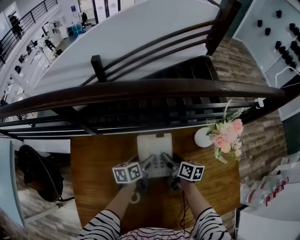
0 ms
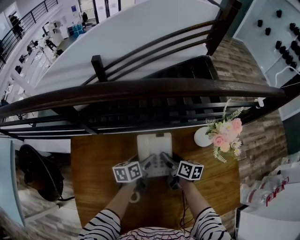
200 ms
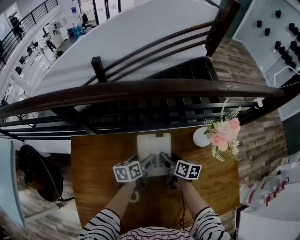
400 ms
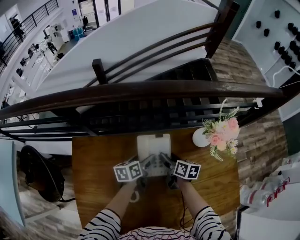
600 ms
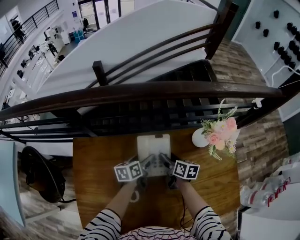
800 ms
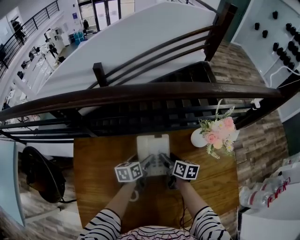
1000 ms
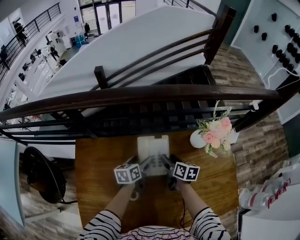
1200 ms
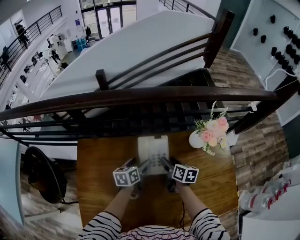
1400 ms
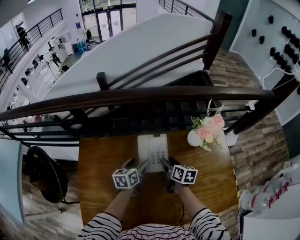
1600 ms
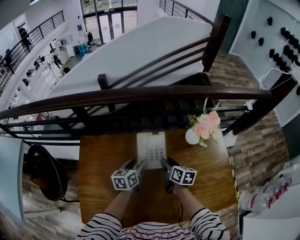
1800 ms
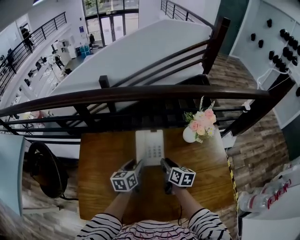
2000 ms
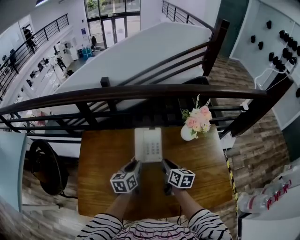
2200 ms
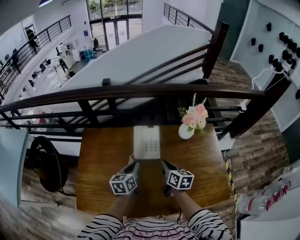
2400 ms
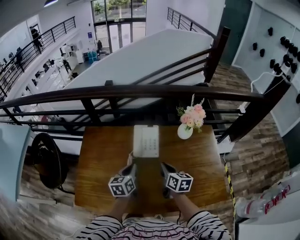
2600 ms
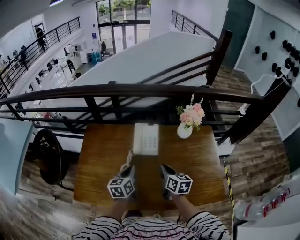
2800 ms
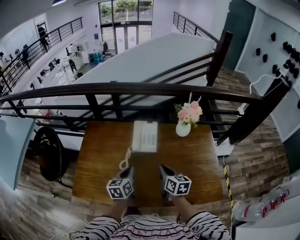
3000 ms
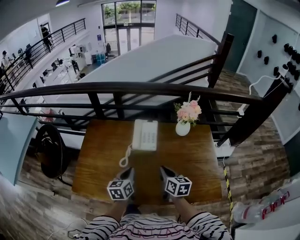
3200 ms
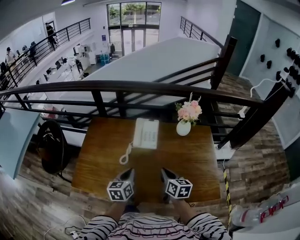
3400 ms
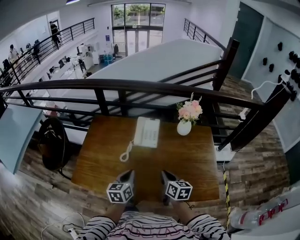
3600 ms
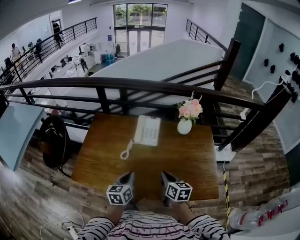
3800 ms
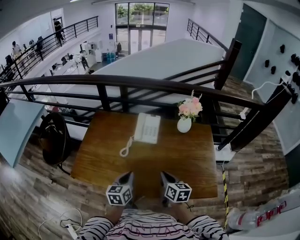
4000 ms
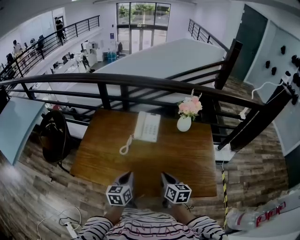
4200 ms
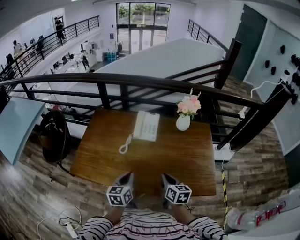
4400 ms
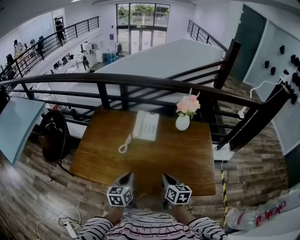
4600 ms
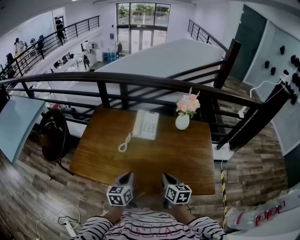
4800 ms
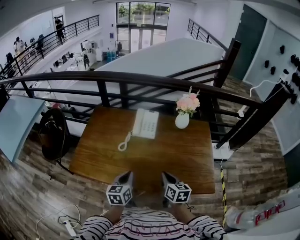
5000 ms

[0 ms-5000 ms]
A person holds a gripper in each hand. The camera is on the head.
0 ms to 1600 ms: Both grippers travel together backward and upward, about 10 cm.
1600 ms to 3400 ms: The grippers both shift backward by approximately 30 cm. The left gripper closes up, while the right gripper closes its fingers.
3400 ms to 5000 ms: The grippers both shift backward by approximately 10 cm.

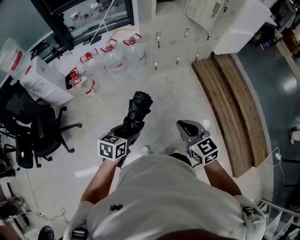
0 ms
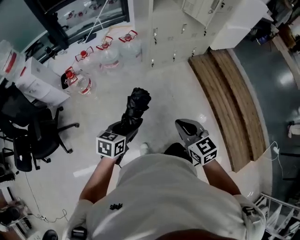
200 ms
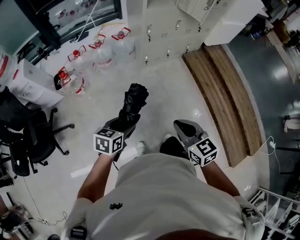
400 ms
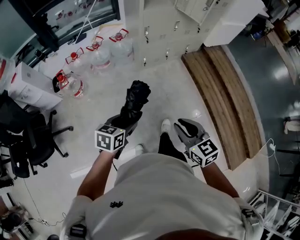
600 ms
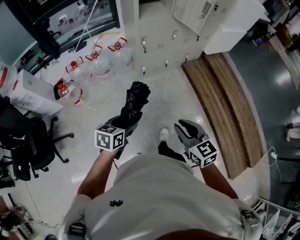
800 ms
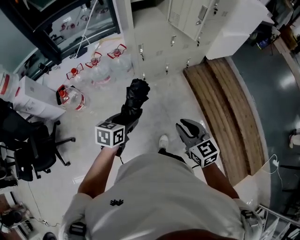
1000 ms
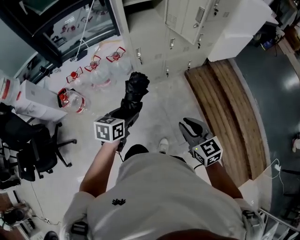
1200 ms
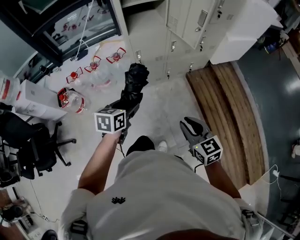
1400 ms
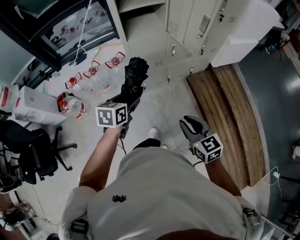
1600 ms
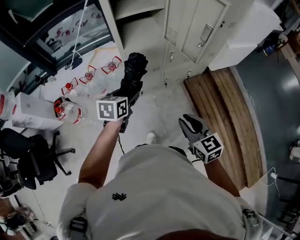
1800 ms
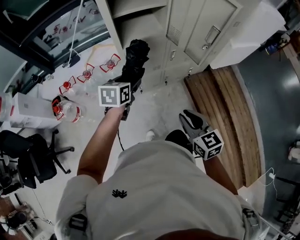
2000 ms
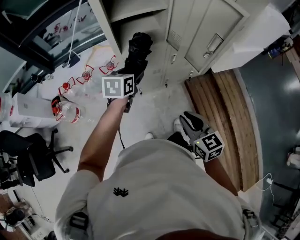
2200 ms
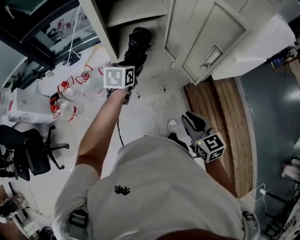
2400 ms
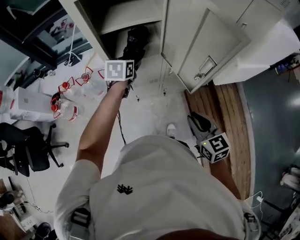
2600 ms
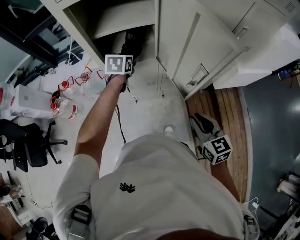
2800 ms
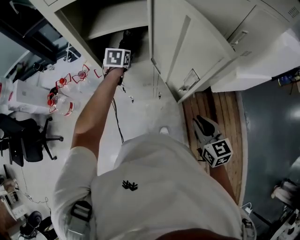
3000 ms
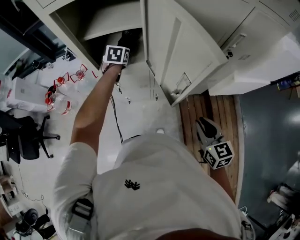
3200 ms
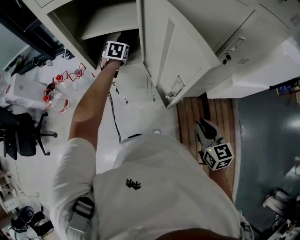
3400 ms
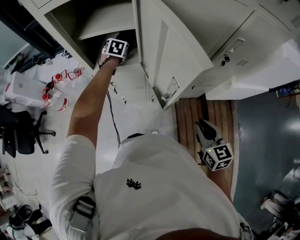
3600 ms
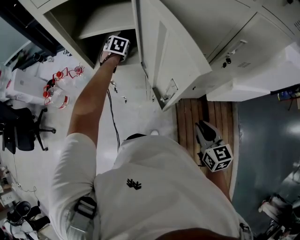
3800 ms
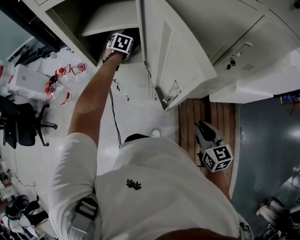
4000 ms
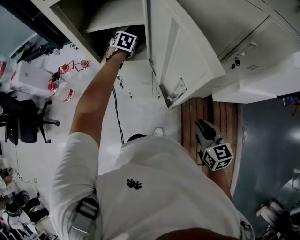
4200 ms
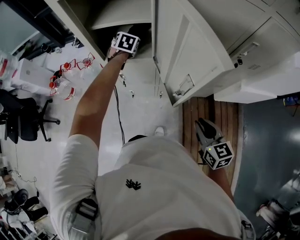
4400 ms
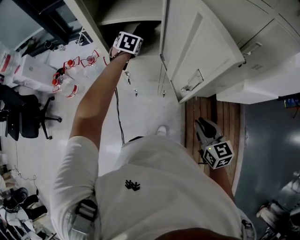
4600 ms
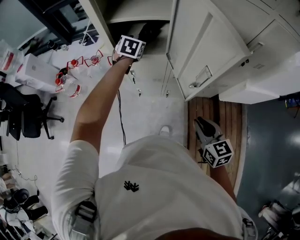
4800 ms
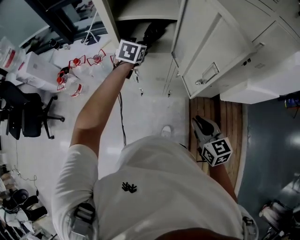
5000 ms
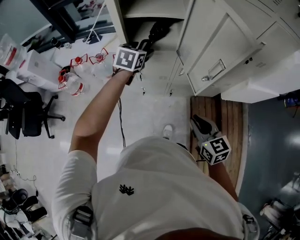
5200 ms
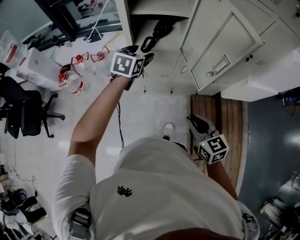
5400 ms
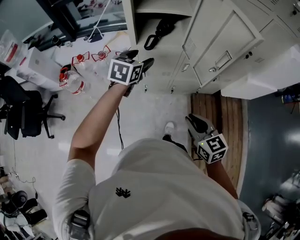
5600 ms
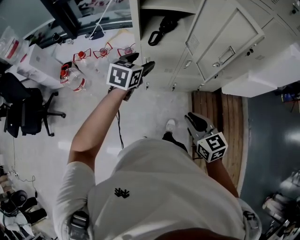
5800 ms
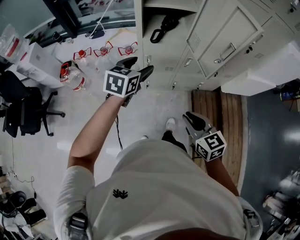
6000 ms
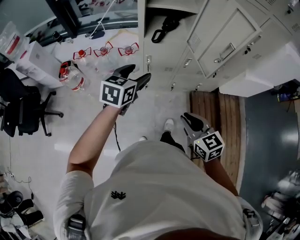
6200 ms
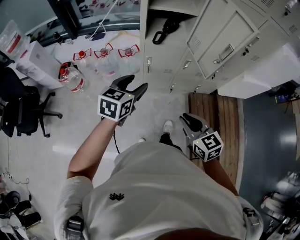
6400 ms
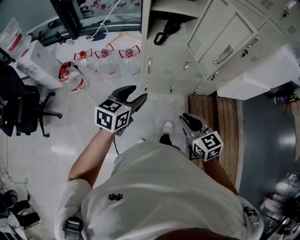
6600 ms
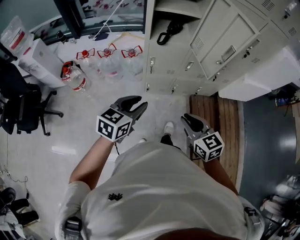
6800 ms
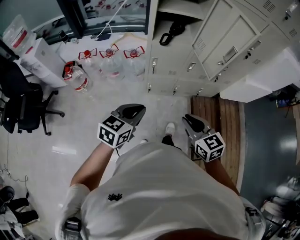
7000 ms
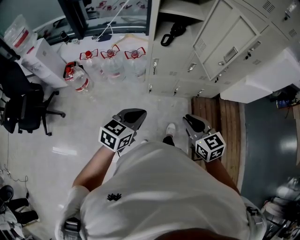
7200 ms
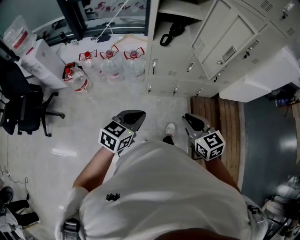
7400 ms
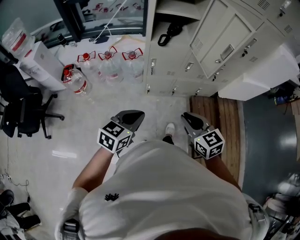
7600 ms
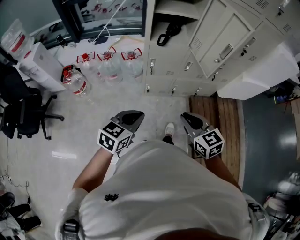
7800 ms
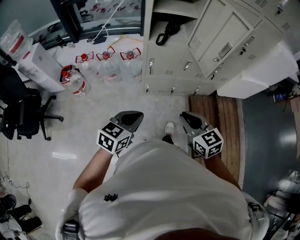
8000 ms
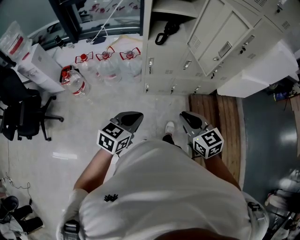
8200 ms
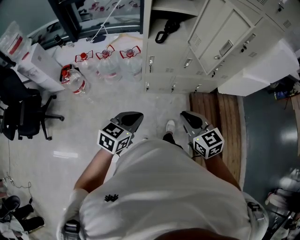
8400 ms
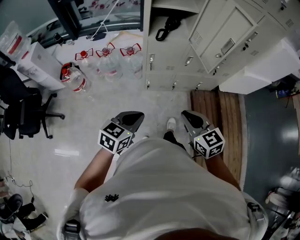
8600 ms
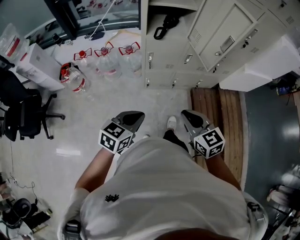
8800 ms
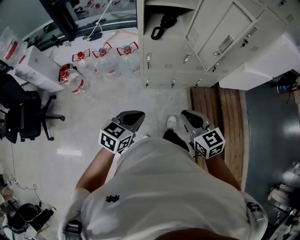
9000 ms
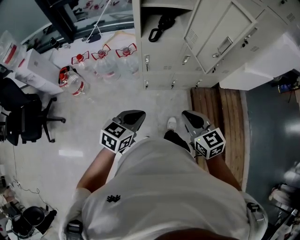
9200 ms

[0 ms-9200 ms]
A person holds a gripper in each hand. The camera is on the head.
0 ms to 1600 ms: The right gripper shifts roughly 35 cm forward and to the right, while the left gripper goes about 40 cm forward.
1600 ms to 3000 ms: The right gripper goes roughly 35 cm forward and to the right. The left gripper goes roughly 40 cm forward, and swivels about 20 degrees.
3000 ms to 4600 ms: The right gripper goes to the right and returns, about 10 cm each way.
4600 ms to 6200 ms: The right gripper moves to the left and backward, some 25 cm. The left gripper shifts roughly 35 cm backward and to the left, and swivels roughly 30 degrees.
6200 ms to 7600 ms: The right gripper shifts by approximately 5 cm, while the left gripper goes about 20 cm backward, and closes.
7600 ms to 9200 ms: The left gripper changes place by some 5 cm.

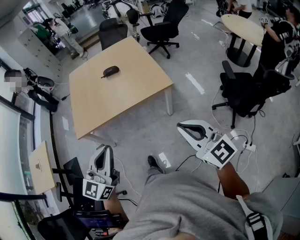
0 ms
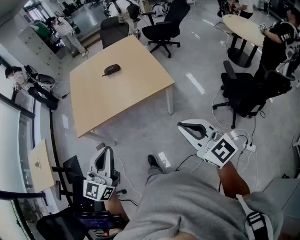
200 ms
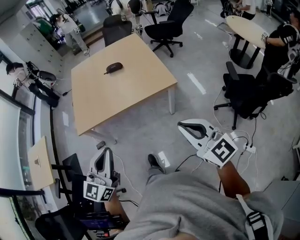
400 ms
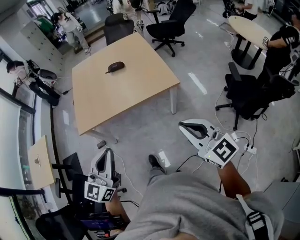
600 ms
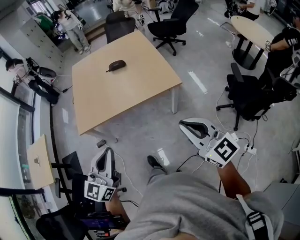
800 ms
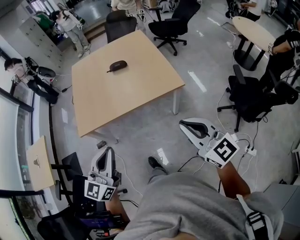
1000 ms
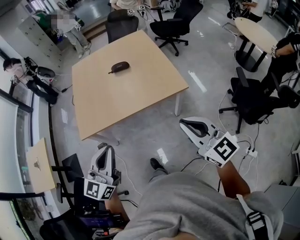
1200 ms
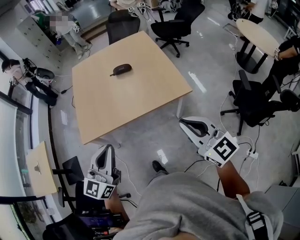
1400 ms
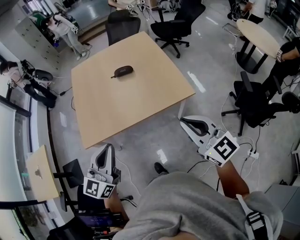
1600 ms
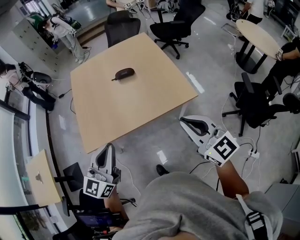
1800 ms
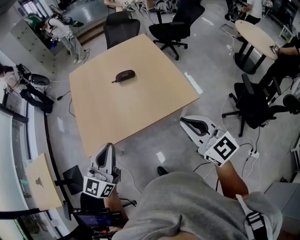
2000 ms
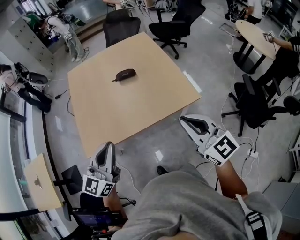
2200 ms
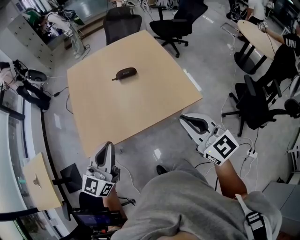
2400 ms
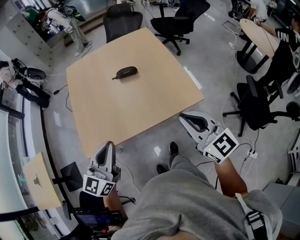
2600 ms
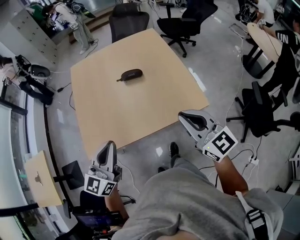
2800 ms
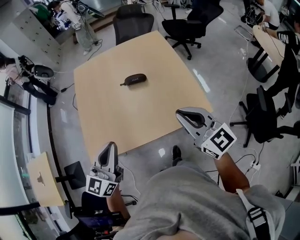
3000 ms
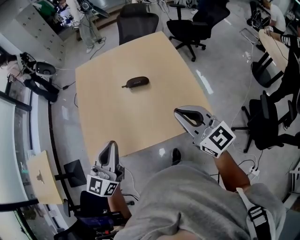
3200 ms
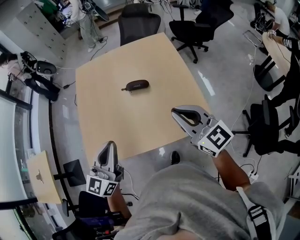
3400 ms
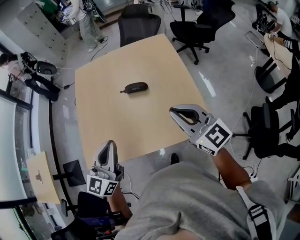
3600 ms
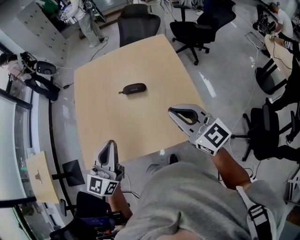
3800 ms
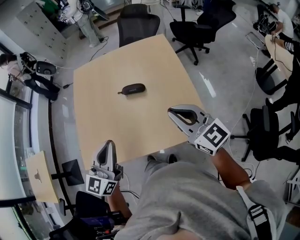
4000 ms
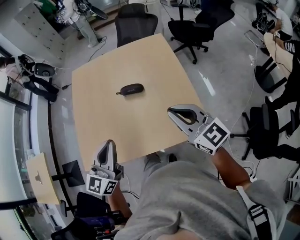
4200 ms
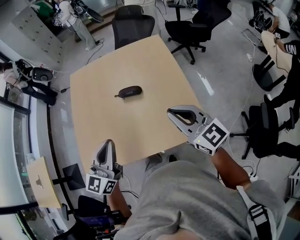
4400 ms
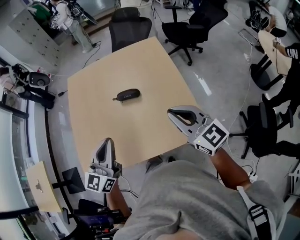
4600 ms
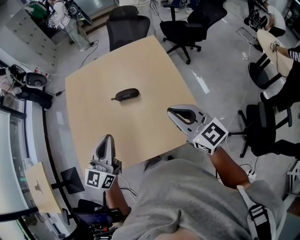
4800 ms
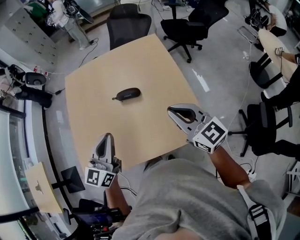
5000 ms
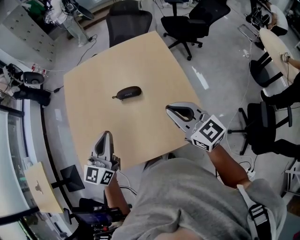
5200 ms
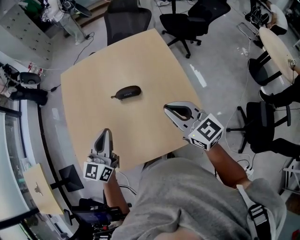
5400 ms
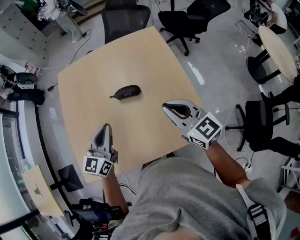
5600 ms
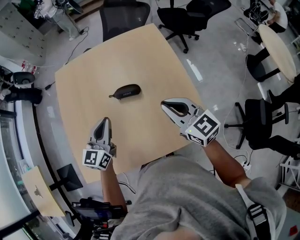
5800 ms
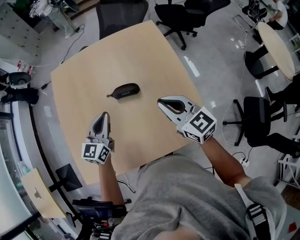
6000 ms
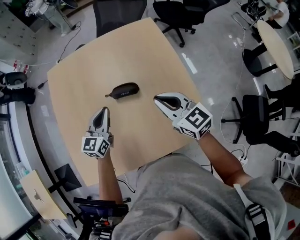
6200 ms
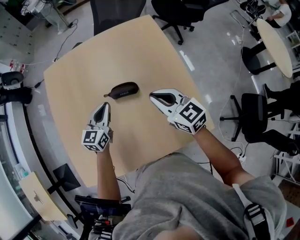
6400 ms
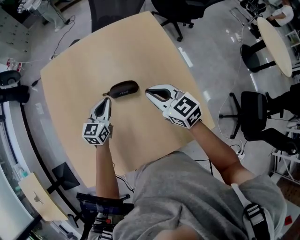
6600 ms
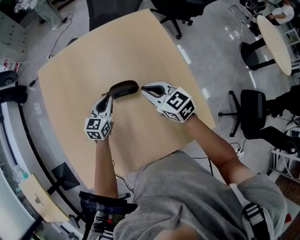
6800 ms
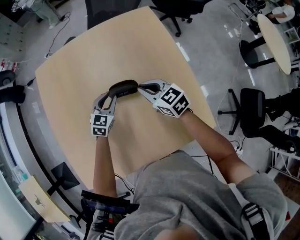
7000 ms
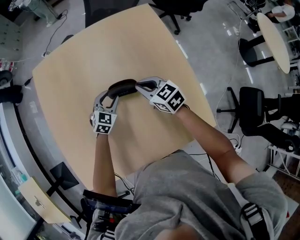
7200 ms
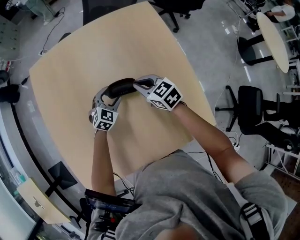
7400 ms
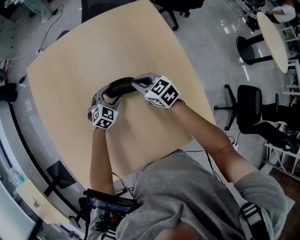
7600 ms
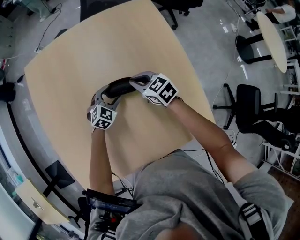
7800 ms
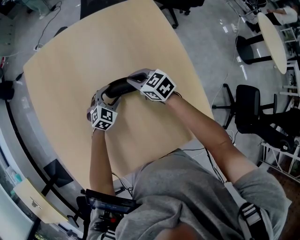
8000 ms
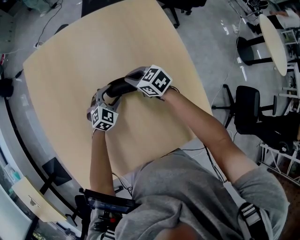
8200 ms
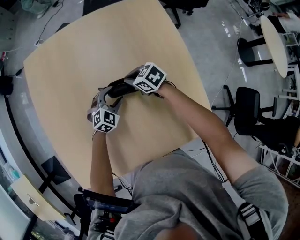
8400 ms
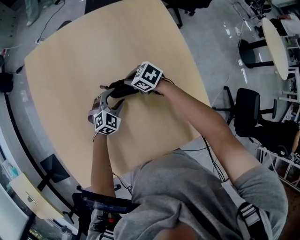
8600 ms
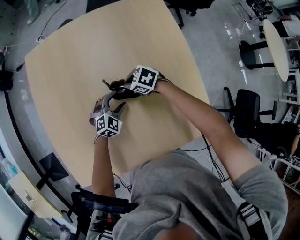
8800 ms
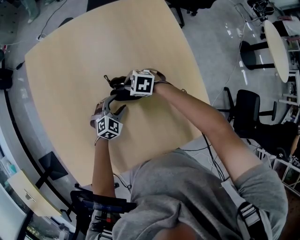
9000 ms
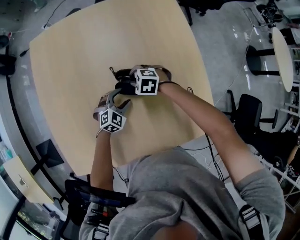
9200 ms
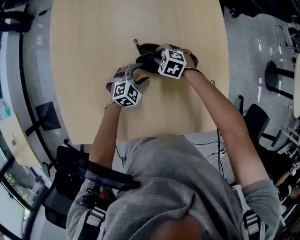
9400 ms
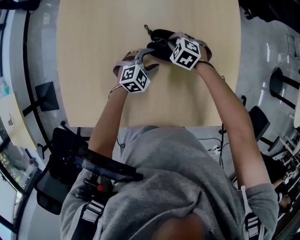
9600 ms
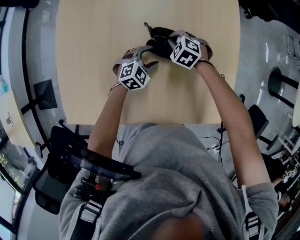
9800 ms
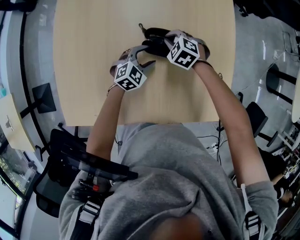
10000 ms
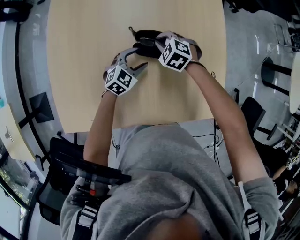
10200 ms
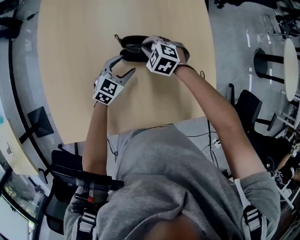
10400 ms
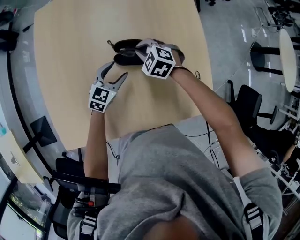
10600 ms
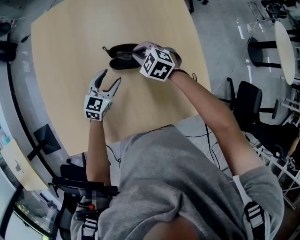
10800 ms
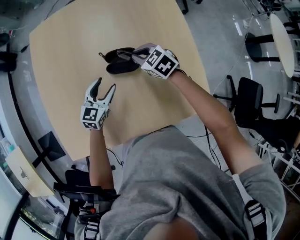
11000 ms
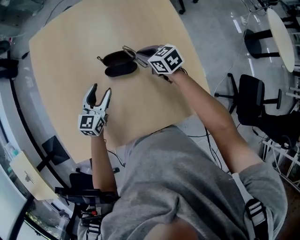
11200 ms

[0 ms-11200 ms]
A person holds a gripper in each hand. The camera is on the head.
0 ms to 1600 ms: The grippers both shift forward and to the left by some 25 cm.
1600 ms to 3200 ms: Both grippers move forward, approximately 25 cm.
3200 ms to 4800 ms: The two grippers go roughly 15 cm forward and to the right.
4800 ms to 6400 ms: The right gripper is displaced forward, downward and to the left by about 25 cm; the left gripper goes some 30 cm forward and downward.
6400 ms to 8000 ms: The left gripper shifts about 20 cm downward, rotates approximately 50 degrees, and opens. Meanwhile the right gripper moves downward and forward, about 25 cm, and turns by roughly 20 degrees.
8000 ms to 9600 ms: The right gripper goes roughly 10 cm downward, and rolls counterclockwise, seen from behind, by approximately 40 degrees. The left gripper moves roughly 5 cm.
9600 ms to 11200 ms: The right gripper heads upward and to the right, covering roughly 15 cm, and rotates around the line of its fingers by approximately 50 degrees, clockwise from behind. Meanwhile the left gripper is displaced upward and to the left by roughly 15 cm, and swivels roughly 40 degrees.
